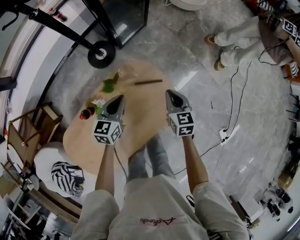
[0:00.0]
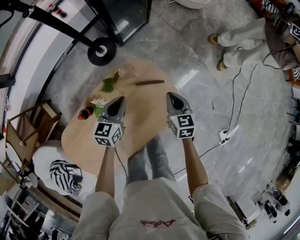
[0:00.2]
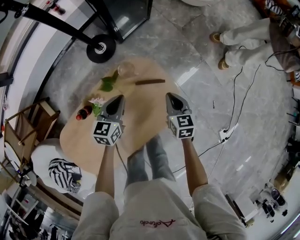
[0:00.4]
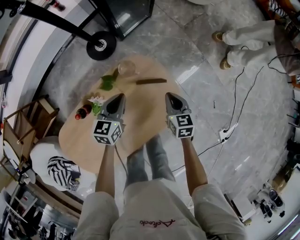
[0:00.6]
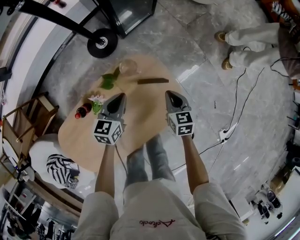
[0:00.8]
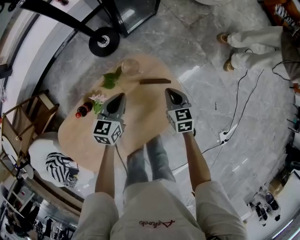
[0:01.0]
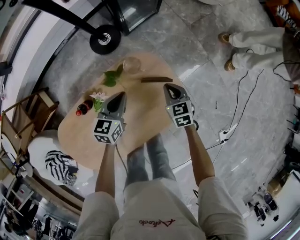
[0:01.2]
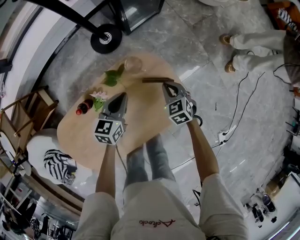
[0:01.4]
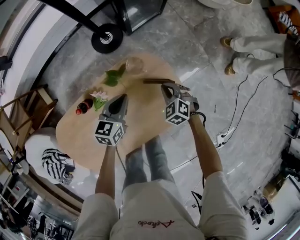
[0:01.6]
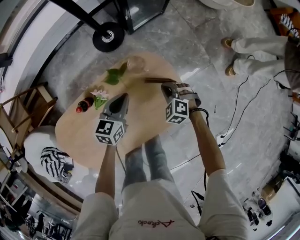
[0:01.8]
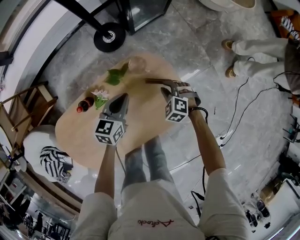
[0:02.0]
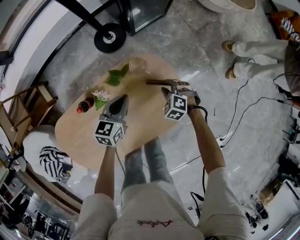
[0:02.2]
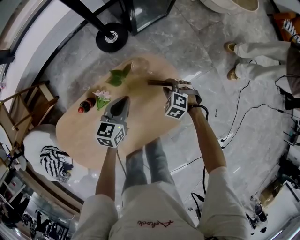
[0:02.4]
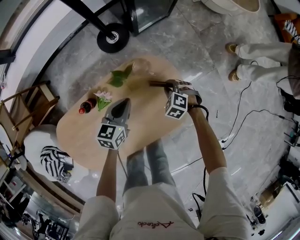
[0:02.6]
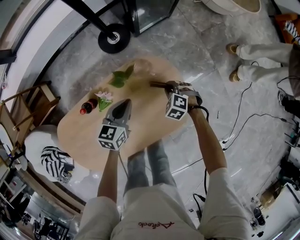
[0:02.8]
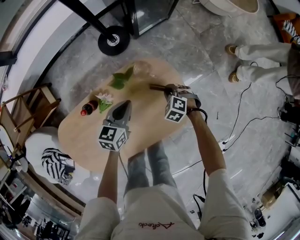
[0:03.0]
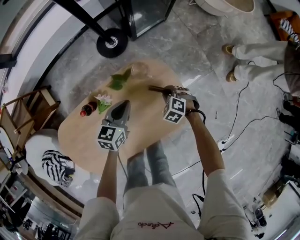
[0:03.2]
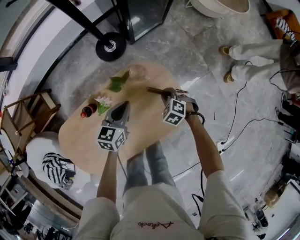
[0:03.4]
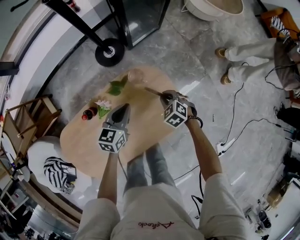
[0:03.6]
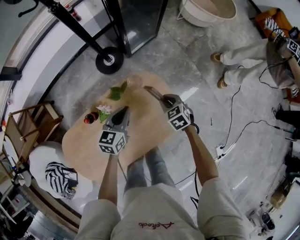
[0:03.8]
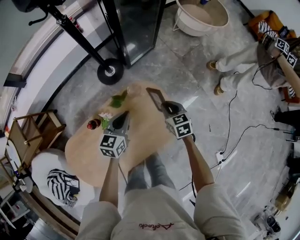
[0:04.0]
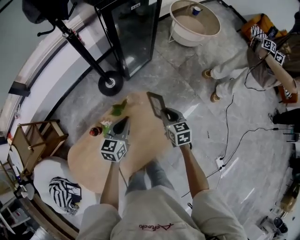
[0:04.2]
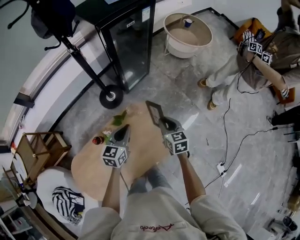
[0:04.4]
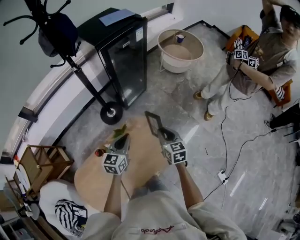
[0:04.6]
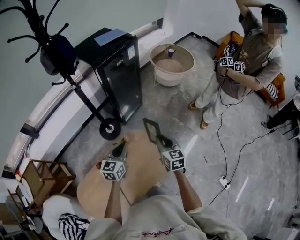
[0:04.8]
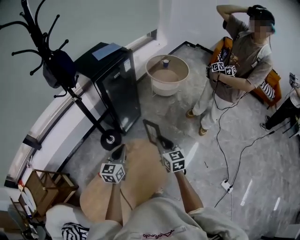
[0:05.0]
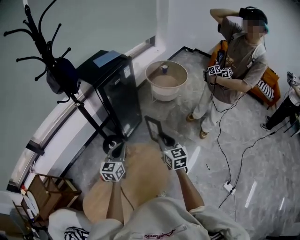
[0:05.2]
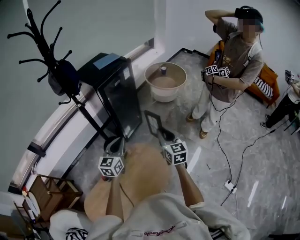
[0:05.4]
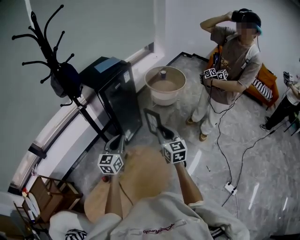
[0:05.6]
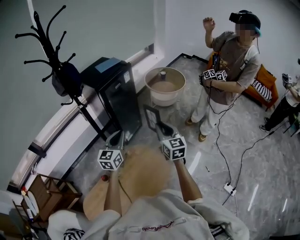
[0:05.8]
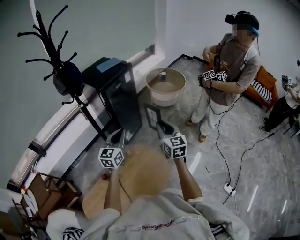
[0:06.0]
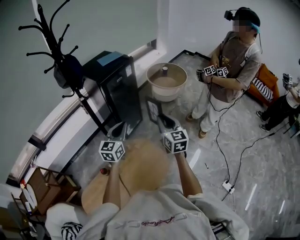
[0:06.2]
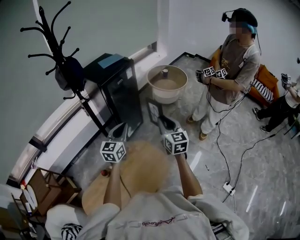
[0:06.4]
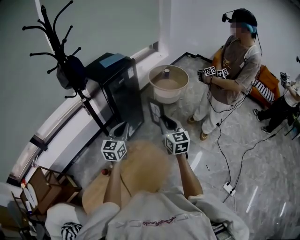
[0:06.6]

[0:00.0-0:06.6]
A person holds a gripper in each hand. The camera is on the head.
0:00.0 to 0:01.6: The left gripper heads downward, covering about 10 cm. Meanwhile the right gripper heads downward and to the left, covering about 15 cm, and rolls counterclockwise, seen from behind, by some 50 degrees.
0:01.6 to 0:03.2: The grippers stay close to where they were, moving slightly.
0:03.2 to 0:05.0: Both grippers move upward, approximately 40 cm. The left gripper turns by some 20 degrees. Meanwhile the right gripper tips its fingers upward by approximately 50 degrees.
0:05.0 to 0:06.6: The grippers both shift upward by about 15 cm.

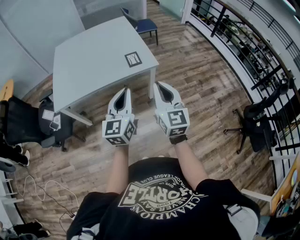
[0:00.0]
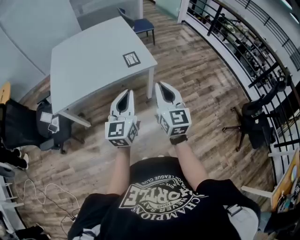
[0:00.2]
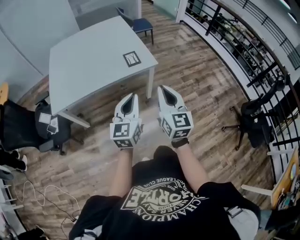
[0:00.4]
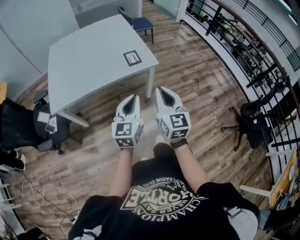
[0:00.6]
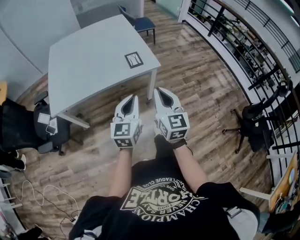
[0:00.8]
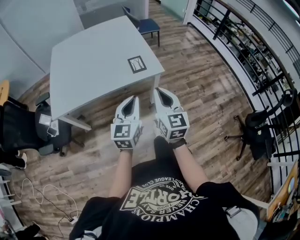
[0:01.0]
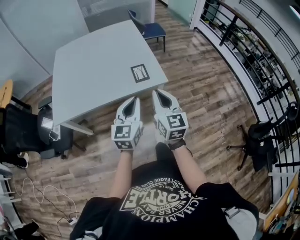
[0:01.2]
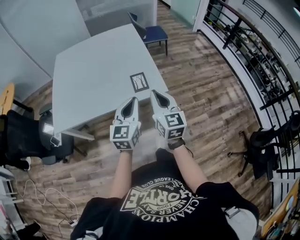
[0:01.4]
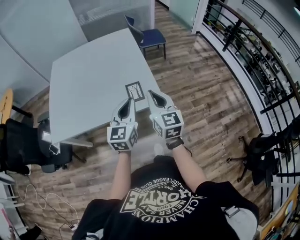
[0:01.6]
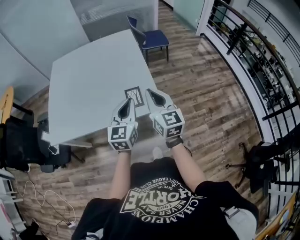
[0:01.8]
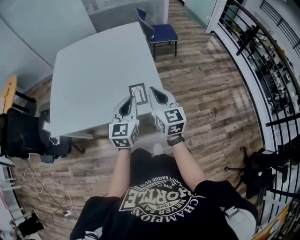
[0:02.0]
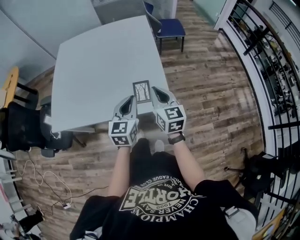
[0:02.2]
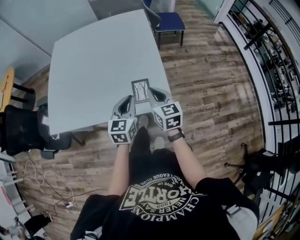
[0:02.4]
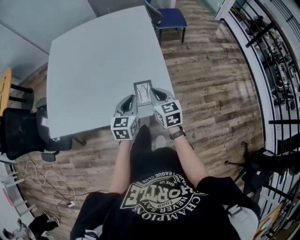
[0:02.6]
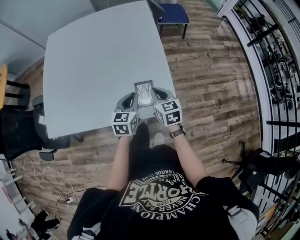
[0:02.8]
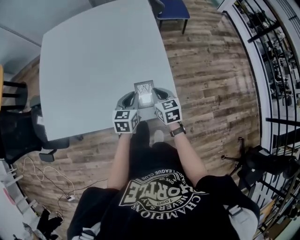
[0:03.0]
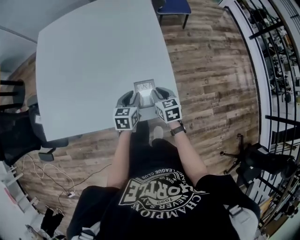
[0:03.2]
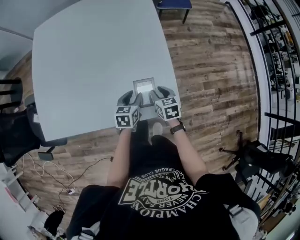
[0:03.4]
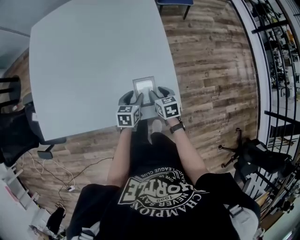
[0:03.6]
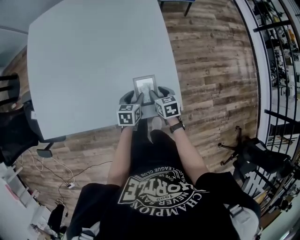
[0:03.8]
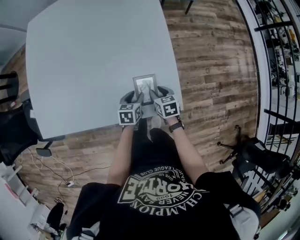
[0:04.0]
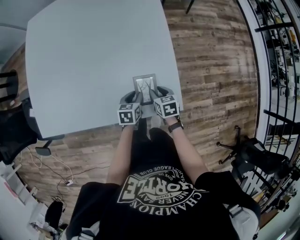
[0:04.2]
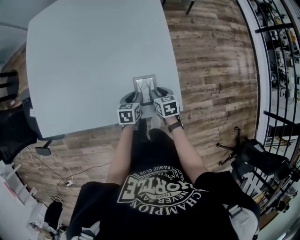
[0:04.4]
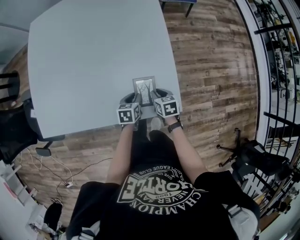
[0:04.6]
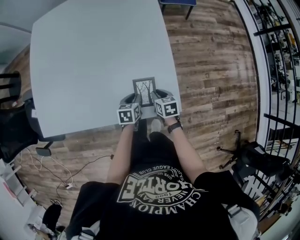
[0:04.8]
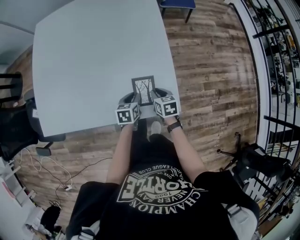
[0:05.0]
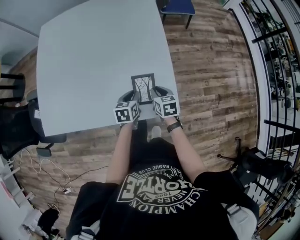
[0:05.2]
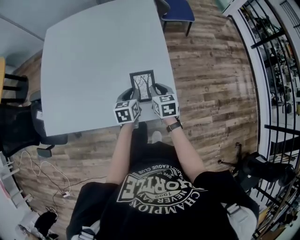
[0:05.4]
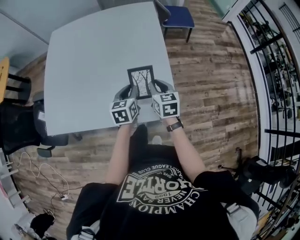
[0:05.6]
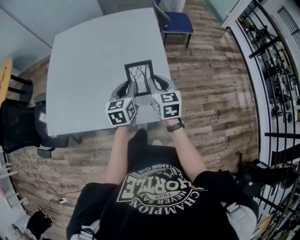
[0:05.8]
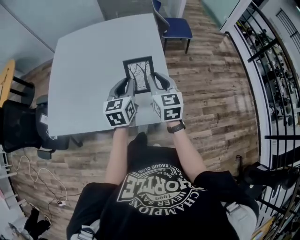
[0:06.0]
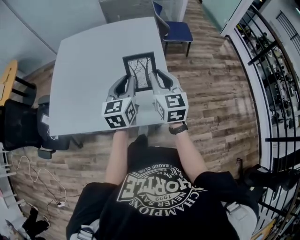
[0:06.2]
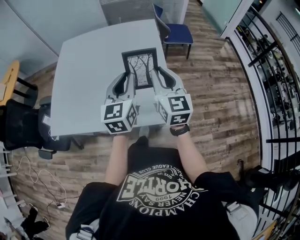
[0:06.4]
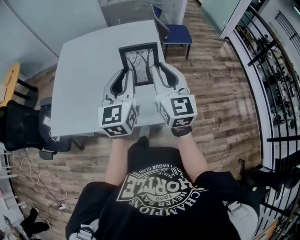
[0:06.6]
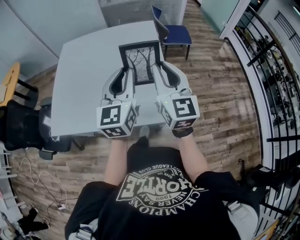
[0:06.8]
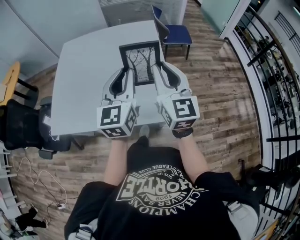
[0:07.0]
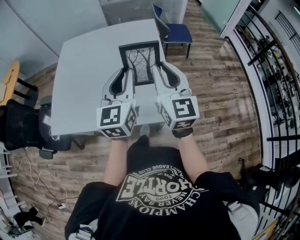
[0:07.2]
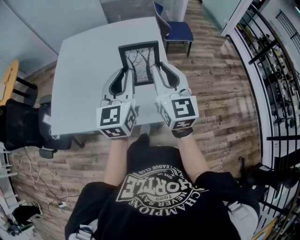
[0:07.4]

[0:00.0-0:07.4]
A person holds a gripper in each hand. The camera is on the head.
0:00.0 to 0:01.4: Both grippers travel together forward, about 25 cm.
0:01.4 to 0:03.0: The two grippers go roughly 40 cm forward and downward. The right gripper points its fingers about 30 degrees further downward, while the left gripper changes its angle by approximately 30 degrees.
0:03.0 to 0:04.4: The two grippers go about 15 cm downward. The right gripper swivels about 20 degrees, and opens. The left gripper turns by roughly 20 degrees.
0:04.4 to 0:06.0: The two grippers go roughly 35 cm upward. The right gripper angles its fingers upward, by roughly 40 degrees; the left gripper tilts its fingers some 30 degrees upward.
0:06.0 to 0:07.4: The two grippers go roughly 15 cm upward. The left gripper swivels approximately 20 degrees.

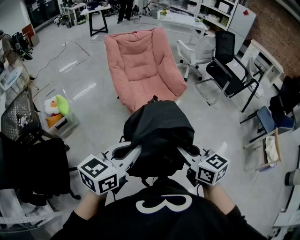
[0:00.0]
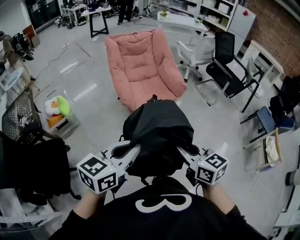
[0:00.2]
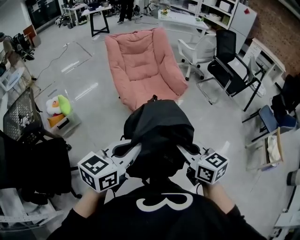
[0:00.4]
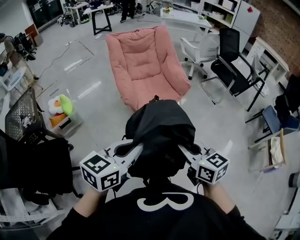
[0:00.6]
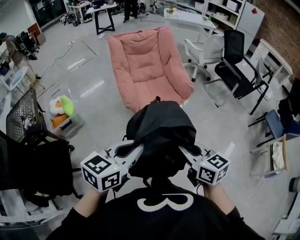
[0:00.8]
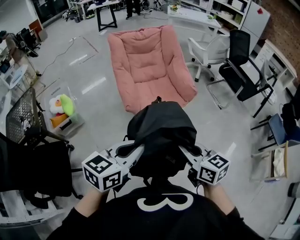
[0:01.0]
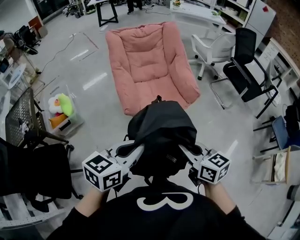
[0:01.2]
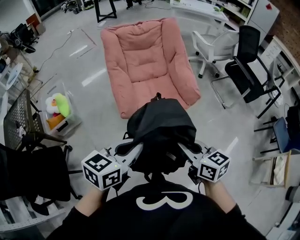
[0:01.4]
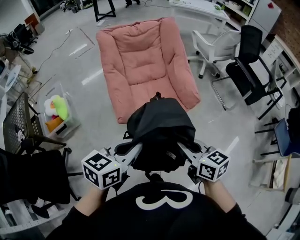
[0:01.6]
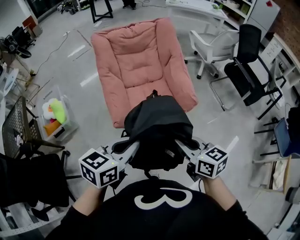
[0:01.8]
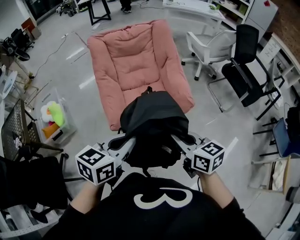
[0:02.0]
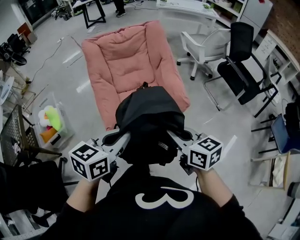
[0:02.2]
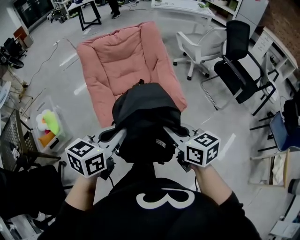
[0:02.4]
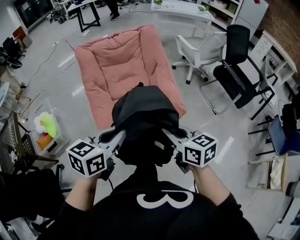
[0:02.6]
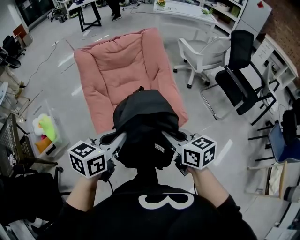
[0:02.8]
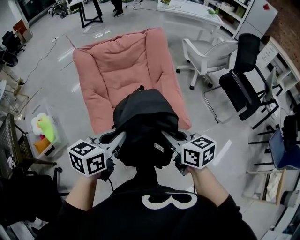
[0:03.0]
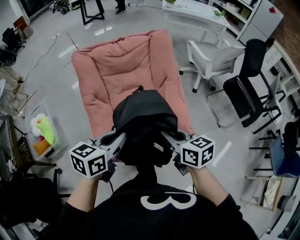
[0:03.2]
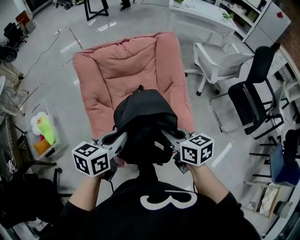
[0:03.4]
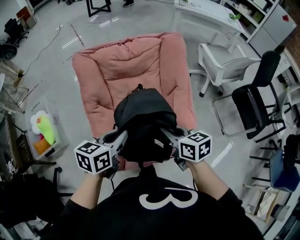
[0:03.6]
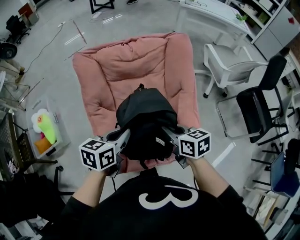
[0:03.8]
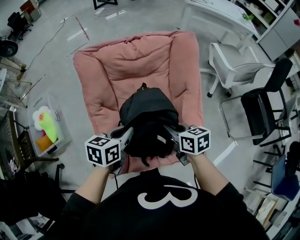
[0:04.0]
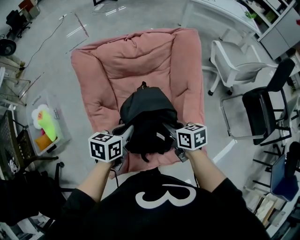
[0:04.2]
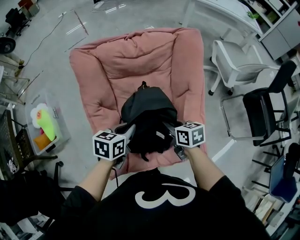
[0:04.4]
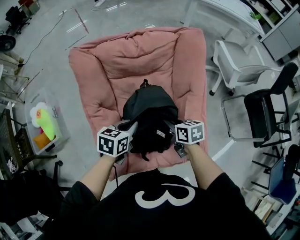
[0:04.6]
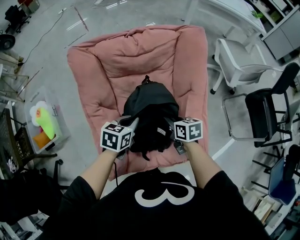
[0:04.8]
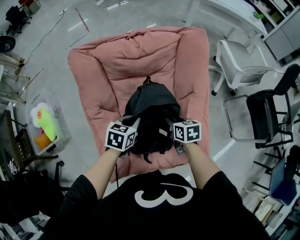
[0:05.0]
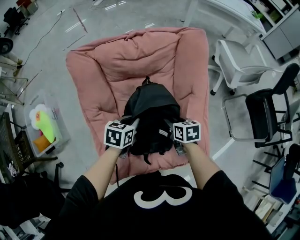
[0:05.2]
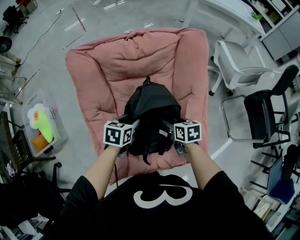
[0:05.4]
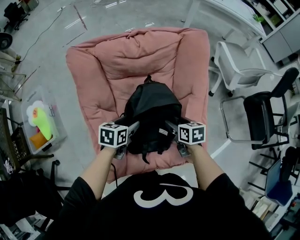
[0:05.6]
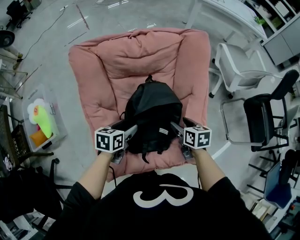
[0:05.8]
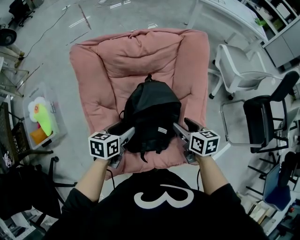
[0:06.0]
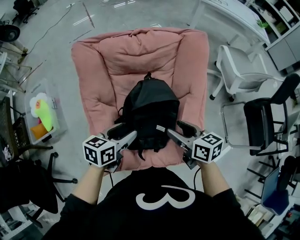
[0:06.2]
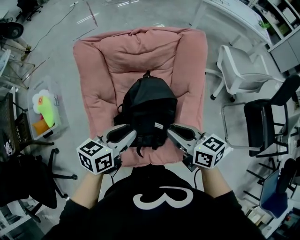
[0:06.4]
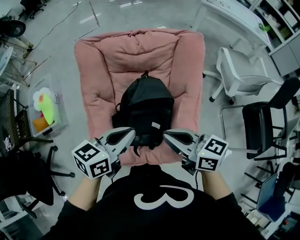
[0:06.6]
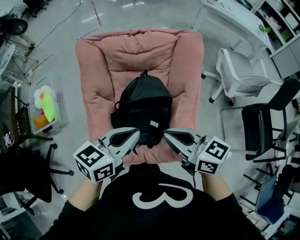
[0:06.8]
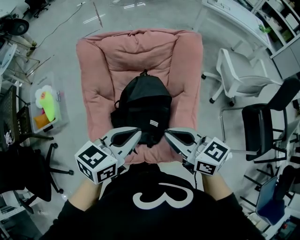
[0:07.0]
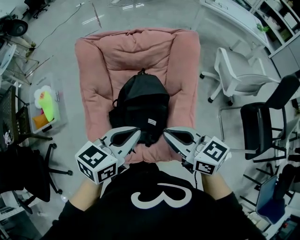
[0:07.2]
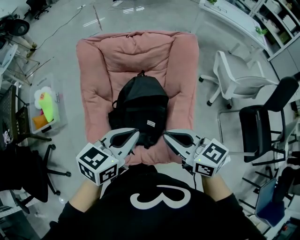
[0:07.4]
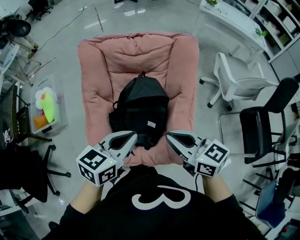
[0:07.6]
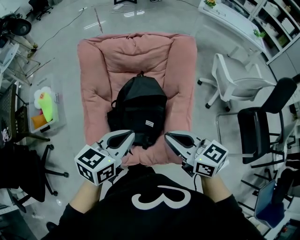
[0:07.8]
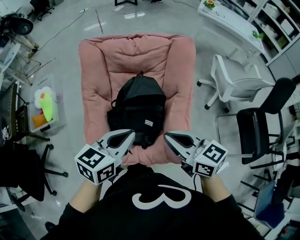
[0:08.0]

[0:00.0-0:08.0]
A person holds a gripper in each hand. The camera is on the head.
0:00.0 to 0:01.6: The grippers both shift forward by some 30 cm.
0:01.6 to 0:03.2: Both grippers travel together forward, approximately 35 cm.
0:03.2 to 0:04.8: The two grippers go some 35 cm forward and downward.
0:04.8 to 0:06.4: Both grippers travel together upward and backward, roughly 15 cm. The right gripper swivels some 30 degrees, and opens, then closes once more; the left gripper opens its fingers.
0:06.4 to 0:08.0: The right gripper travels backward and upward by approximately 10 cm. The left gripper heads backward, upward and to the right, covering some 15 cm, and closes up.

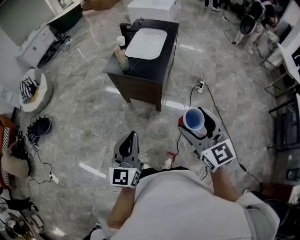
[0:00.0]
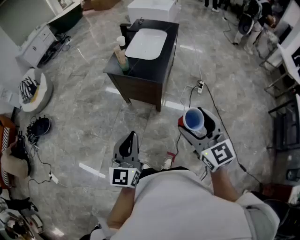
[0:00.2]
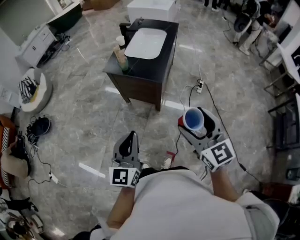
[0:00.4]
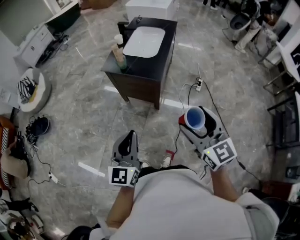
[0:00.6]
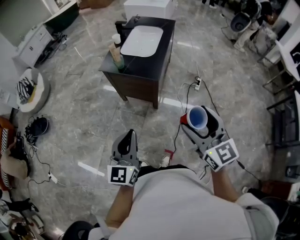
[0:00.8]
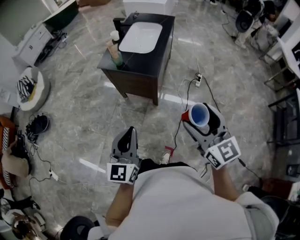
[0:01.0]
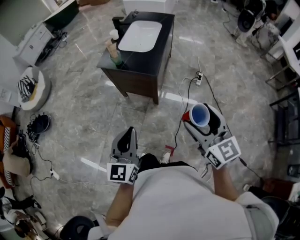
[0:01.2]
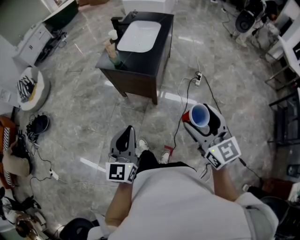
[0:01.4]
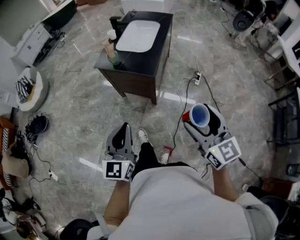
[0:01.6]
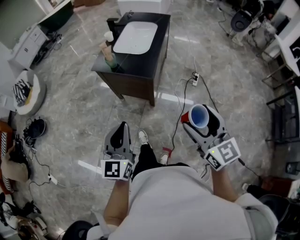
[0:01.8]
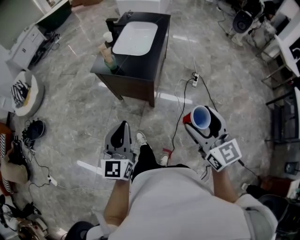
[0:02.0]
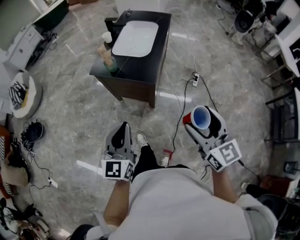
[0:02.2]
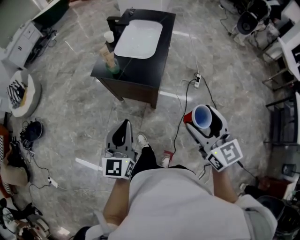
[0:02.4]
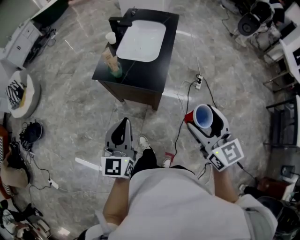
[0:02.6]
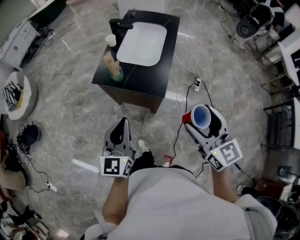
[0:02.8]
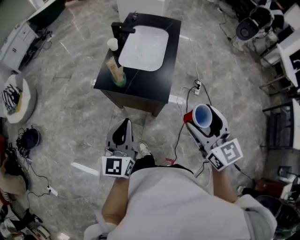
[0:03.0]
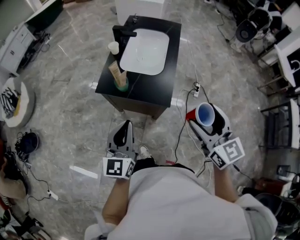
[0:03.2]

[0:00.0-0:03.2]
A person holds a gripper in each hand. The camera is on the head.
0:00.0 to 0:01.6: The right gripper shifts about 5 cm to the right.
0:01.6 to 0:03.2: The two grippers go about 25 cm forward.
